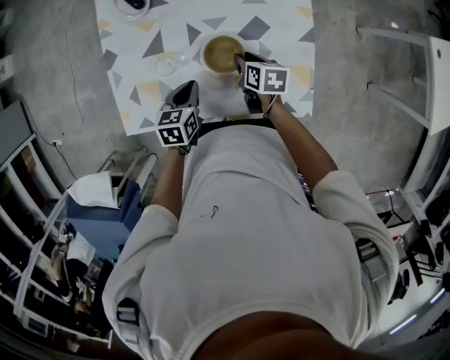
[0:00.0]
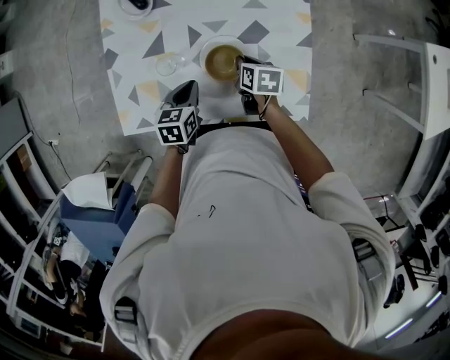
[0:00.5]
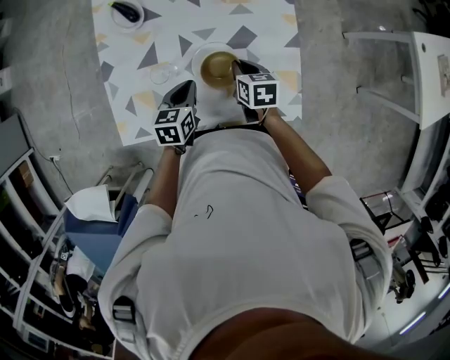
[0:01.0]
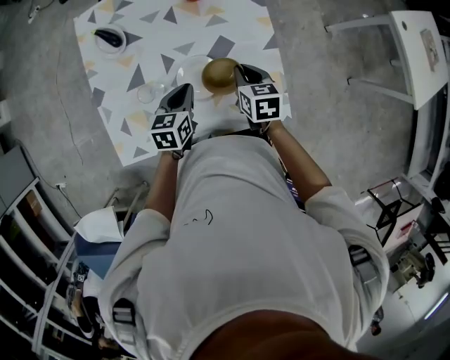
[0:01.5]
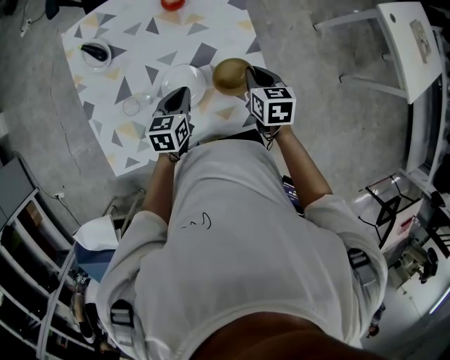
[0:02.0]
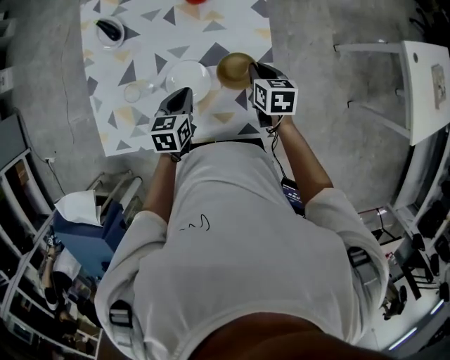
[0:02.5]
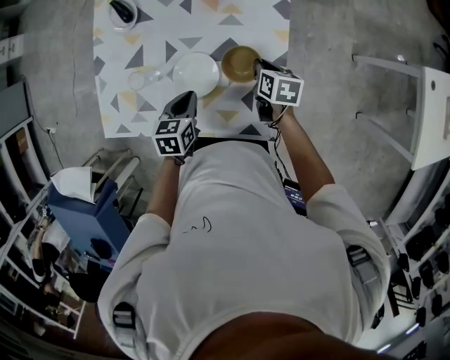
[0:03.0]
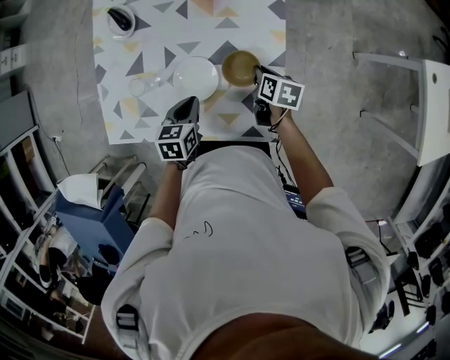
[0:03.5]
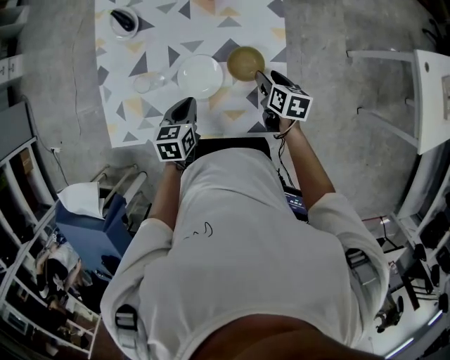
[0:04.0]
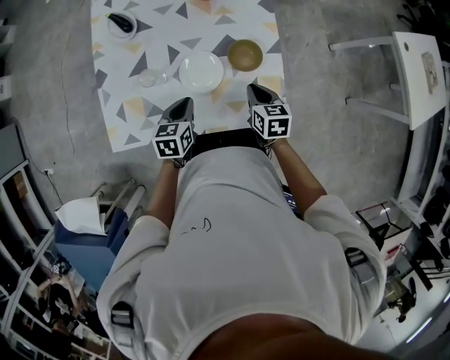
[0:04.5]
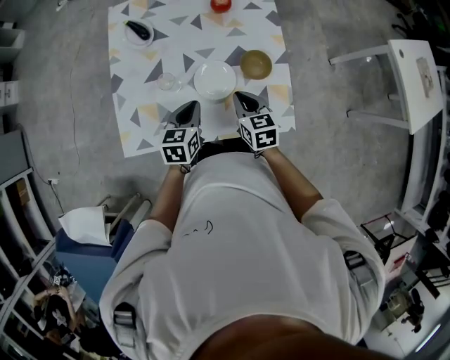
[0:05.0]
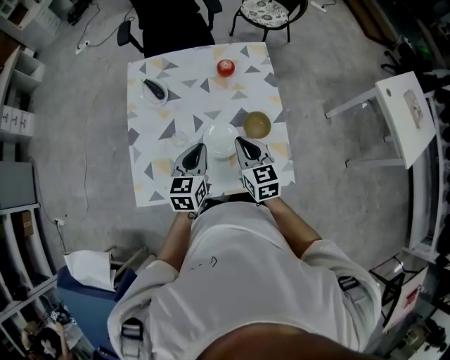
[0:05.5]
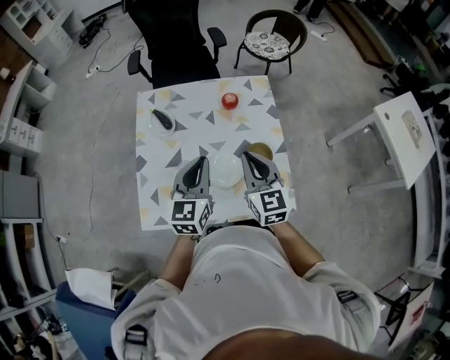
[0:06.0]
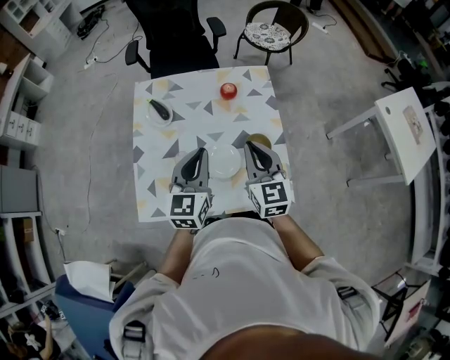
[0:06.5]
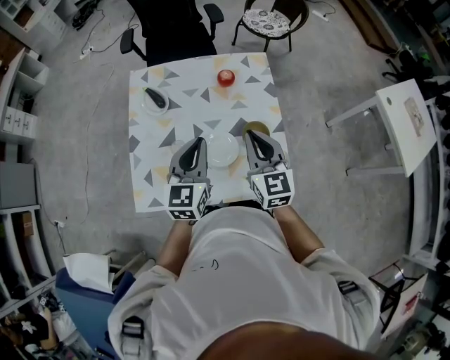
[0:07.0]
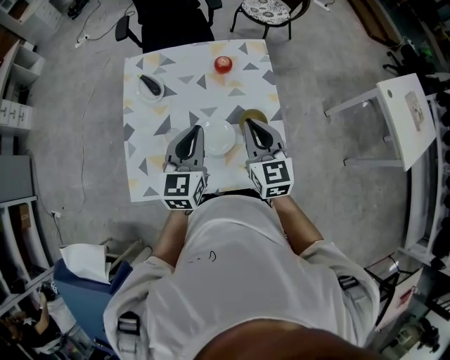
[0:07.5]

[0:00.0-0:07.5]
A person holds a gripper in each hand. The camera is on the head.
0:00.0 to 0:02.0: The right gripper shifts roughly 20 cm to the right and upward, and swivels some 20 degrees. The left gripper heads to the right and forward, covering approximately 15 cm.
0:02.0 to 0:04.0: The left gripper heads backward, covering about 5 cm. Meanwhile the right gripper shifts about 10 cm downward, and opens up.
0:04.0 to 0:05.5: The right gripper travels to the left and upward by about 25 cm, turns by roughly 40 degrees, and closes its fingers, while the left gripper is displaced upward and to the left by about 15 cm, and swivels approximately 30 degrees.
0:05.5 to 0:07.5: Both grippers move upward, approximately 10 cm.

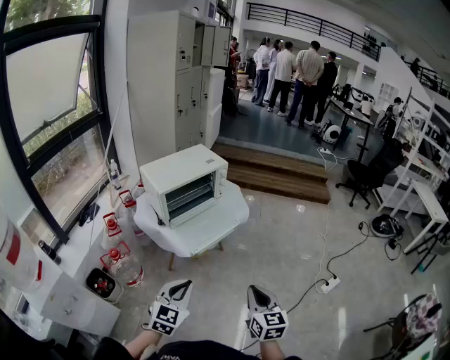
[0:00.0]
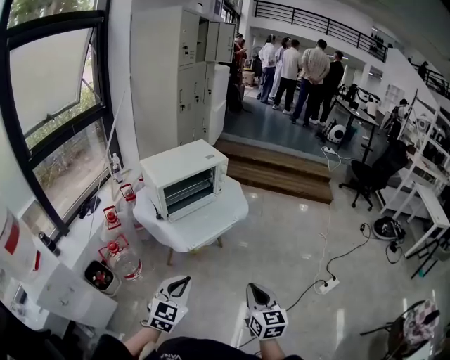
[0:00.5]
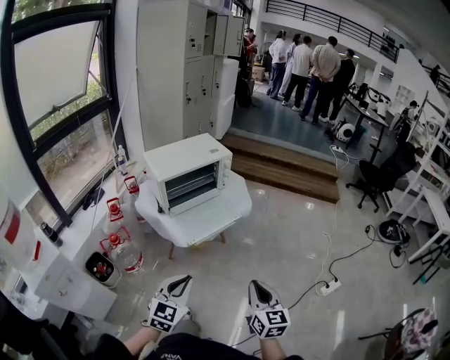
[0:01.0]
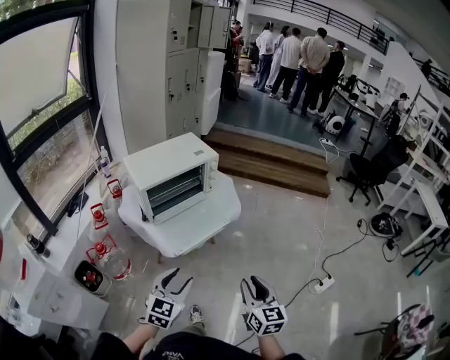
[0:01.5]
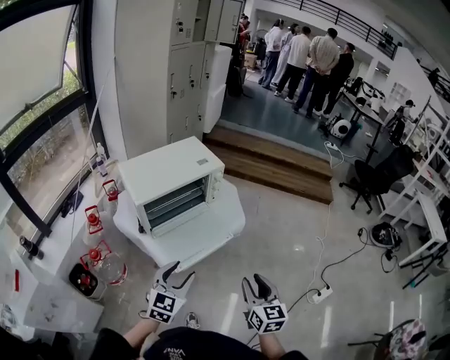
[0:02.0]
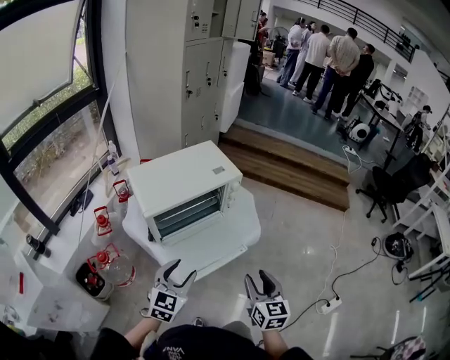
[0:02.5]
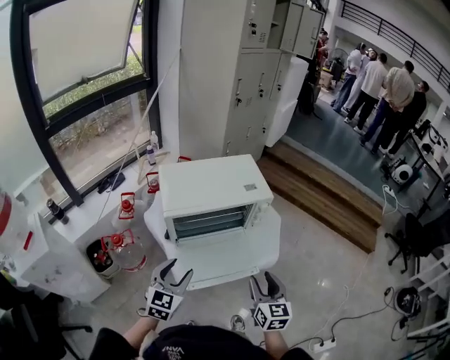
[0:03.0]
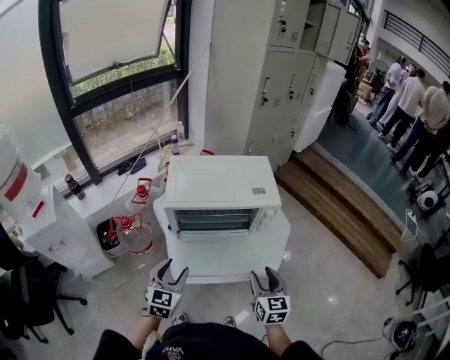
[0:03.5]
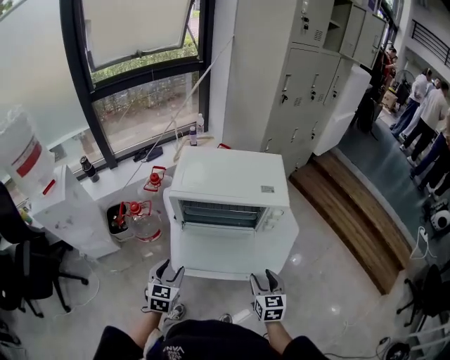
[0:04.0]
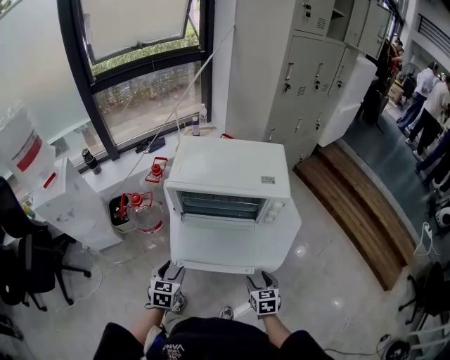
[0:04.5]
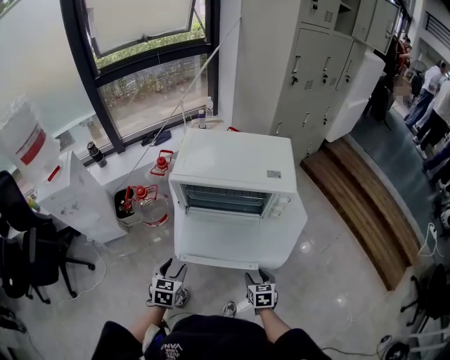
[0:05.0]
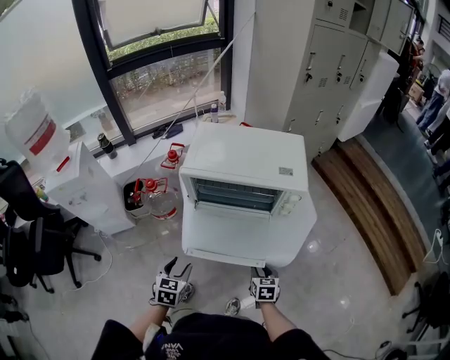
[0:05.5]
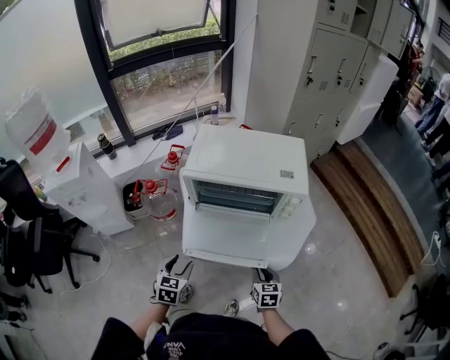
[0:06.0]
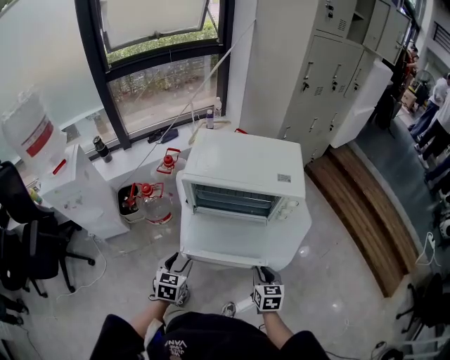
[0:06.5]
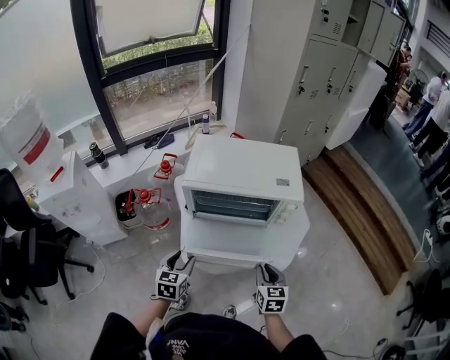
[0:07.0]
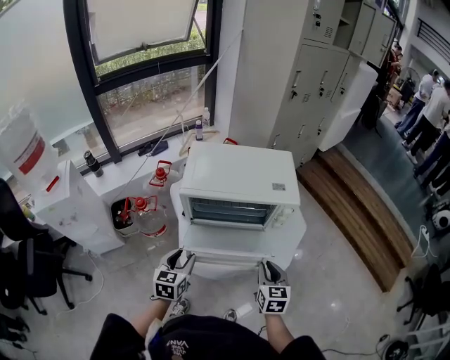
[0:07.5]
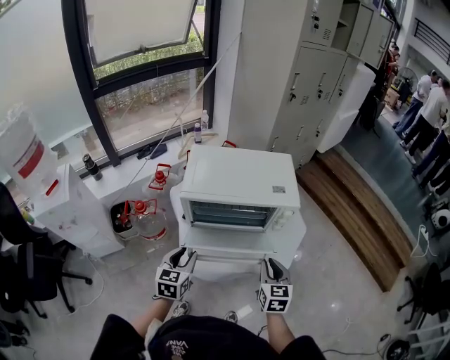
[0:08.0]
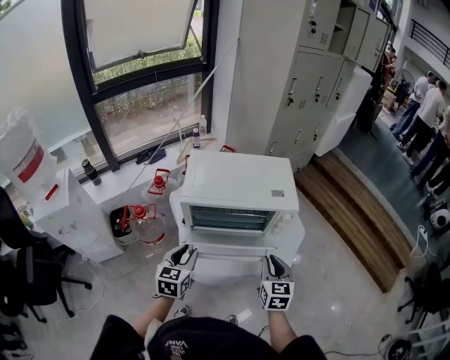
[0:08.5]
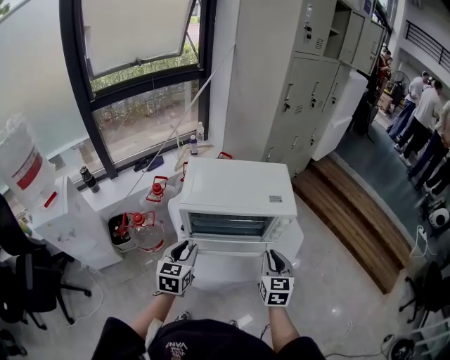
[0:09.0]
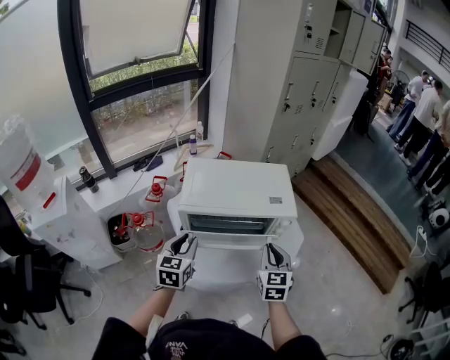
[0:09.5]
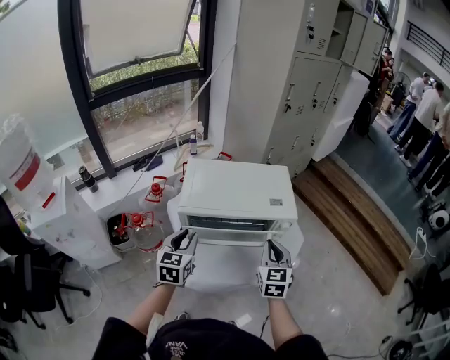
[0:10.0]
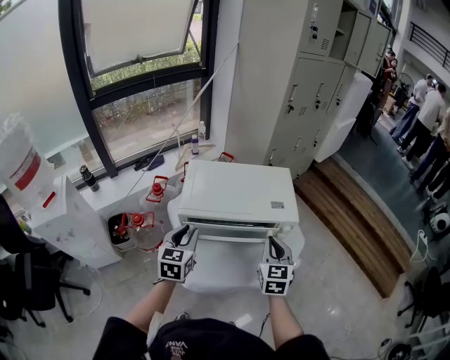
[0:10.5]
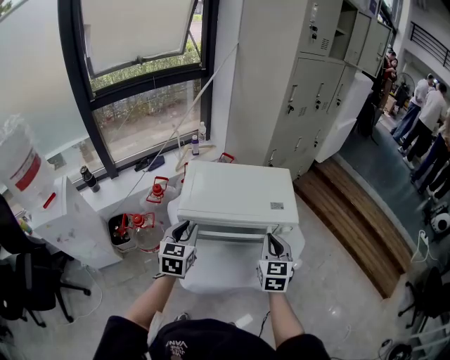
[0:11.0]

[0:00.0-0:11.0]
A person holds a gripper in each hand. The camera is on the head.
0:00.0 to 0:02.0: The grippers both shift forward by roughly 20 cm. The right gripper opens; the left gripper opens.
0:02.0 to 0:03.5: The right gripper ends up roughly 25 cm from where it was, and changes its angle by approximately 30 degrees. Meanwhile the left gripper shifts by about 10 cm, and turns by roughly 40 degrees.
0:03.5 to 0:05.5: The left gripper moves downward and backward, some 15 cm, and rotates approximately 30 degrees. The right gripper goes roughly 20 cm downward, and rotates about 30 degrees.
0:05.5 to 0:07.5: The right gripper goes approximately 15 cm upward; the left gripper is displaced forward and upward by about 10 cm.
0:07.5 to 0:09.0: Both grippers travel together upward and forward, about 10 cm.
0:09.0 to 0:11.0: The two grippers go approximately 10 cm forward.

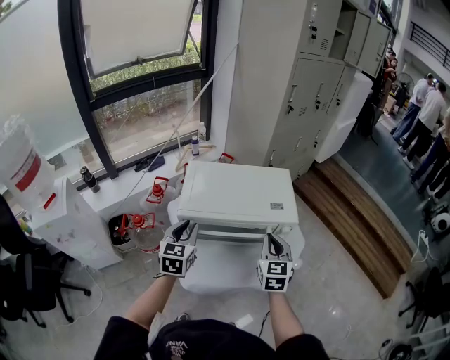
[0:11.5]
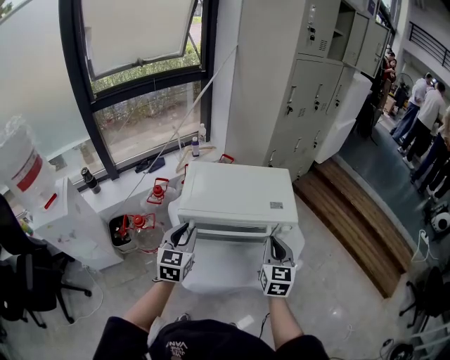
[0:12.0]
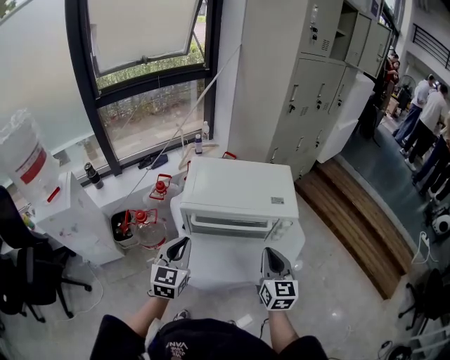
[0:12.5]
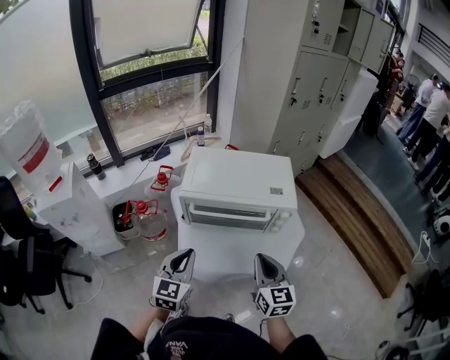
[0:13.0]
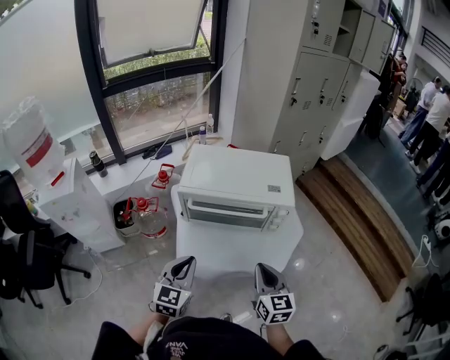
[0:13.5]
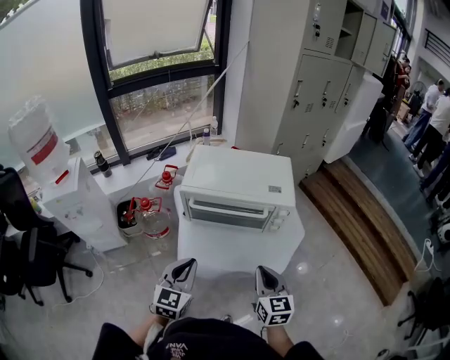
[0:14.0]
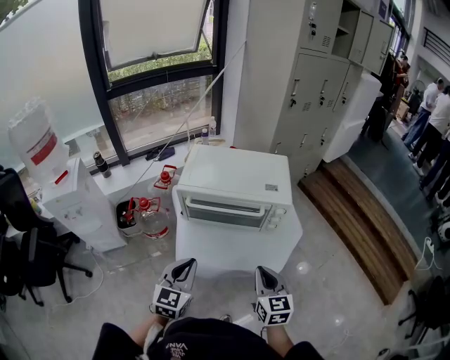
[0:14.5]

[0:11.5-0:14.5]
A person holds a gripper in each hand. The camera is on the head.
0:11.5 to 0:13.0: Both grippers travel together backward, approximately 15 cm. The left gripper closes up.
0:13.0 to 0:14.5: The right gripper changes place by roughly 5 cm, while the left gripper goes some 5 cm backward.

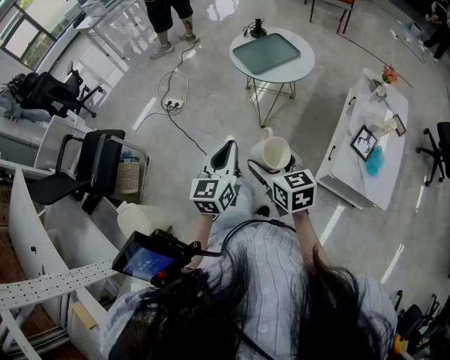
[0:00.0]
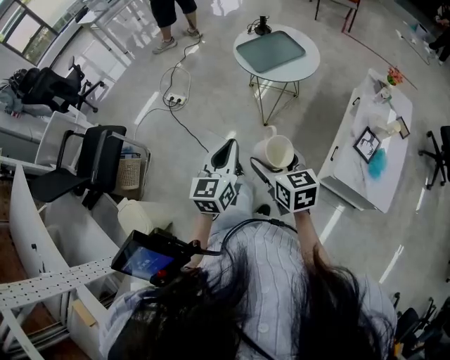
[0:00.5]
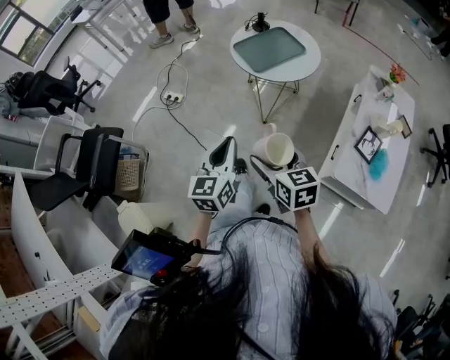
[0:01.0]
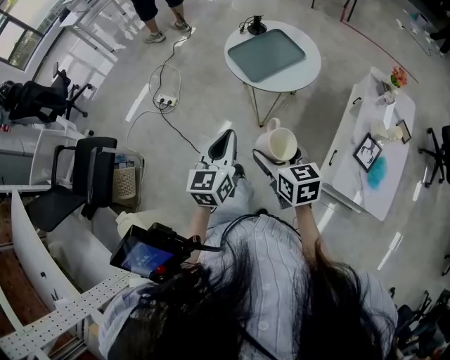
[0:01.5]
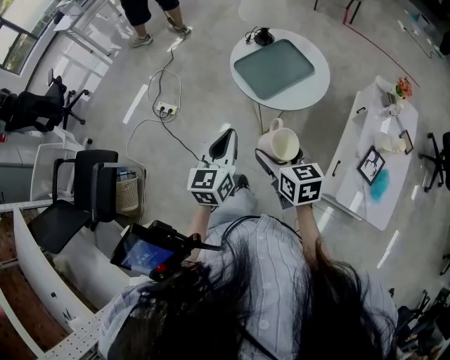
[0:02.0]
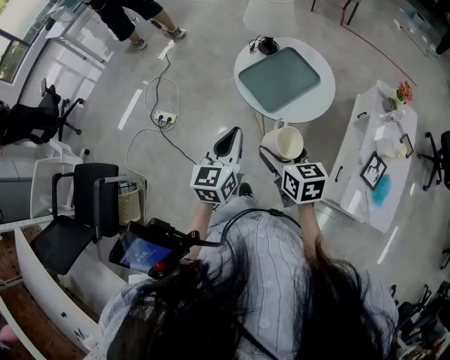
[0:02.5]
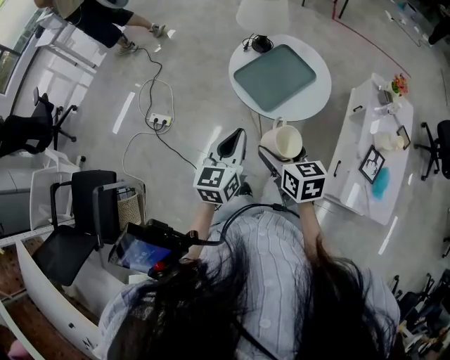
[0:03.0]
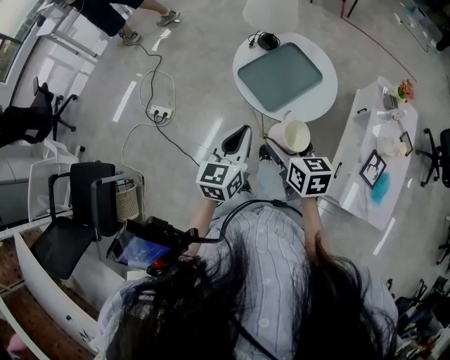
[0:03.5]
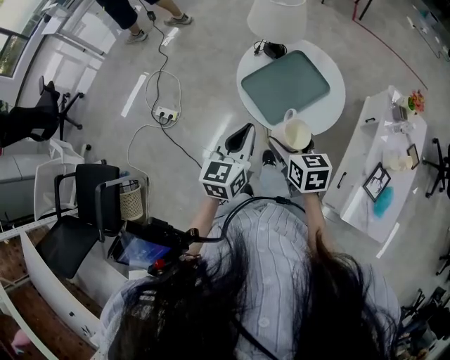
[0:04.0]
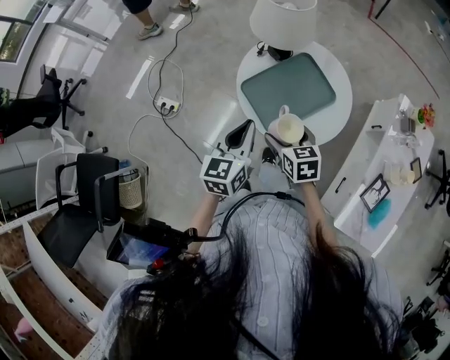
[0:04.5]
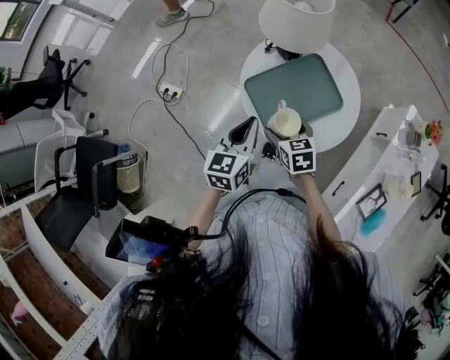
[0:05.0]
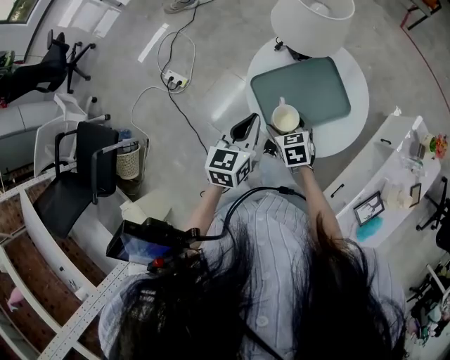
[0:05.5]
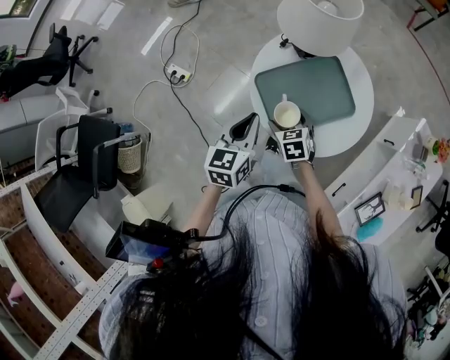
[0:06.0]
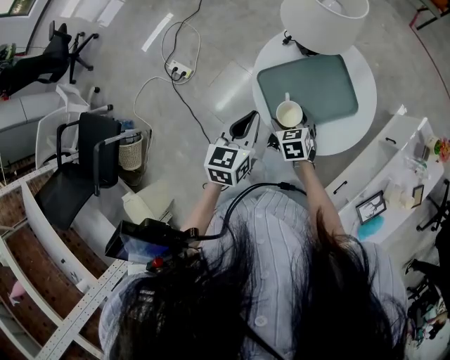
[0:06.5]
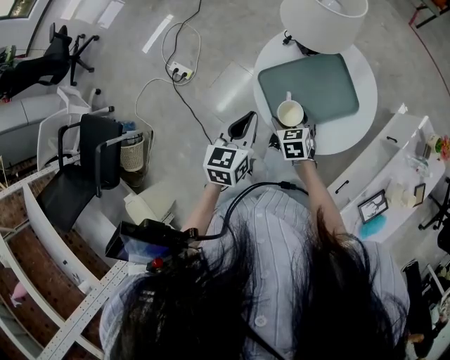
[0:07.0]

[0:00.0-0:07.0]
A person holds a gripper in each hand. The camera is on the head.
0:00.0 to 0:02.0: Both grippers move forward, roughly 25 cm.
0:02.0 to 0:03.5: Both grippers travel together forward, some 10 cm.
0:03.5 to 0:05.0: Both grippers travel together forward and downward, about 20 cm. The right gripper rotates approximately 20 degrees.
0:05.0 to 0:07.0: The right gripper heads downward, covering about 5 cm.
